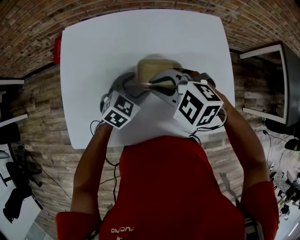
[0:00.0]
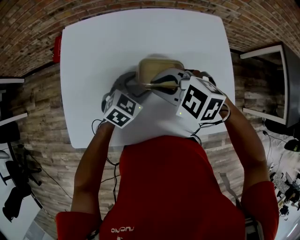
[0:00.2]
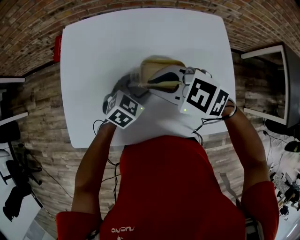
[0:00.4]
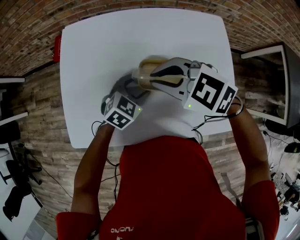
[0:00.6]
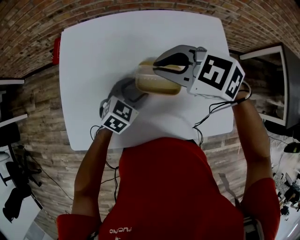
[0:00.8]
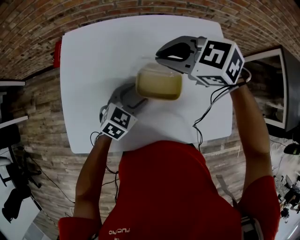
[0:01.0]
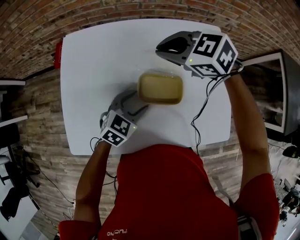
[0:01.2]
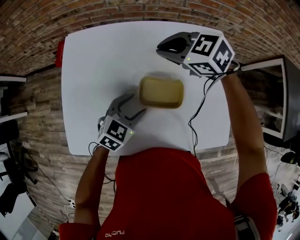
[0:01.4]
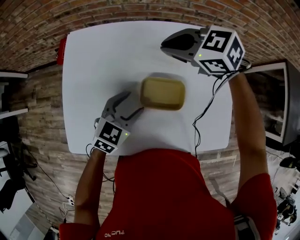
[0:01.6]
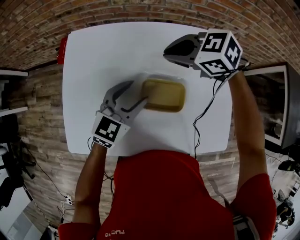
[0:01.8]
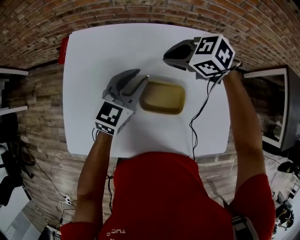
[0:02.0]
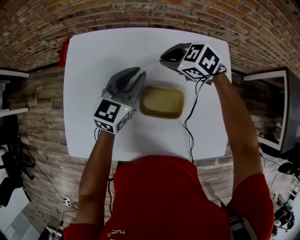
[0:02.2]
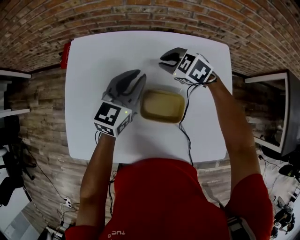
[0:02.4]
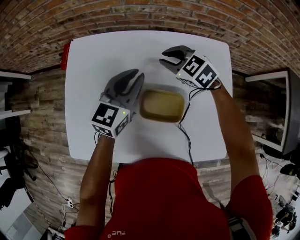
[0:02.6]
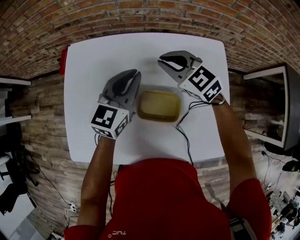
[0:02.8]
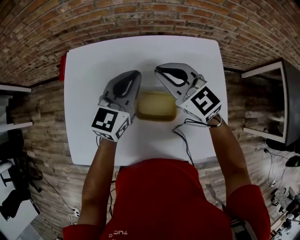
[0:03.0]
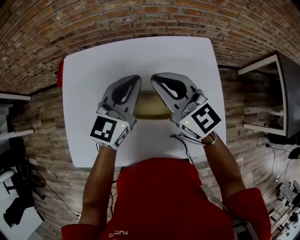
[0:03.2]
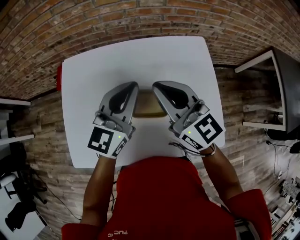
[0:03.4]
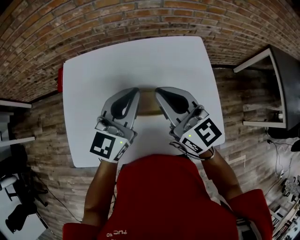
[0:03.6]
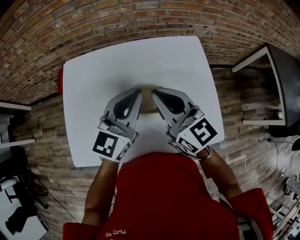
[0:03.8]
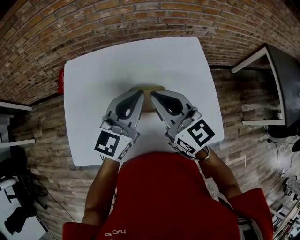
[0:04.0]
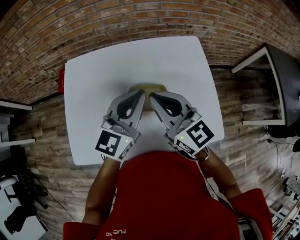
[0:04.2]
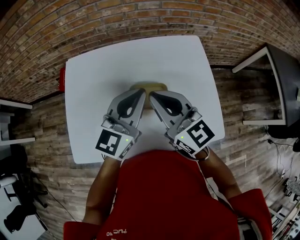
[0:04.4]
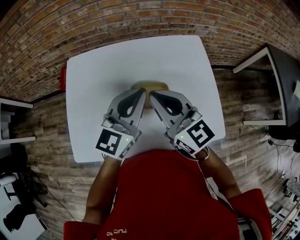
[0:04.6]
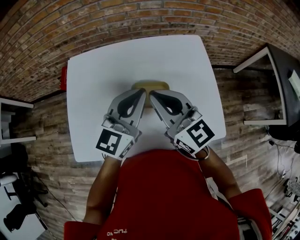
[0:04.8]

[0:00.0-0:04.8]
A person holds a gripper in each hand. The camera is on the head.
0:00.0 to 0:01.6: The right gripper shifts by about 20 cm, and rotates about 20 degrees.
0:01.6 to 0:03.2: The right gripper goes about 5 cm backward, travels downward and back again, roughly 10 cm each way, and angles its fingers upward, by some 40 degrees; the left gripper shifts some 20 cm upward, to the right and forward, turns by some 30 degrees, and closes up.
0:03.2 to 0:04.8: The grippers both shift backward by approximately 10 cm.

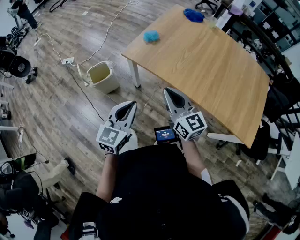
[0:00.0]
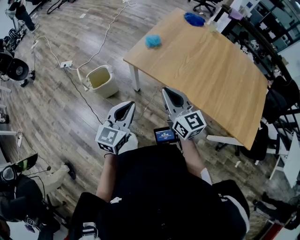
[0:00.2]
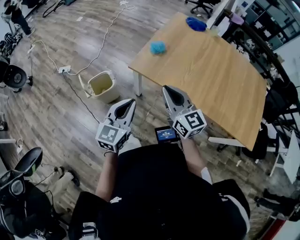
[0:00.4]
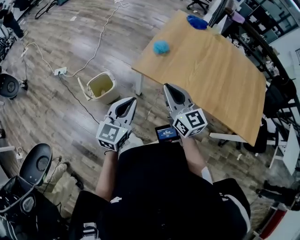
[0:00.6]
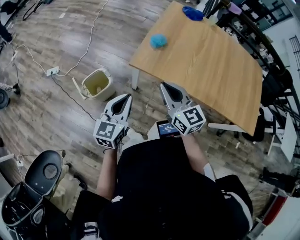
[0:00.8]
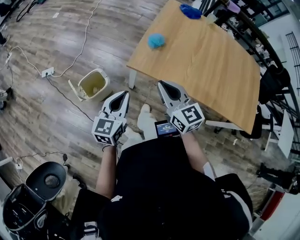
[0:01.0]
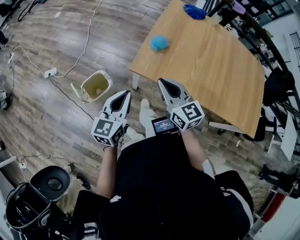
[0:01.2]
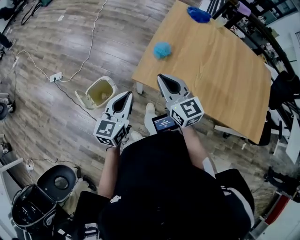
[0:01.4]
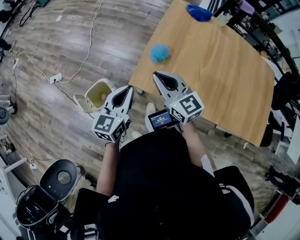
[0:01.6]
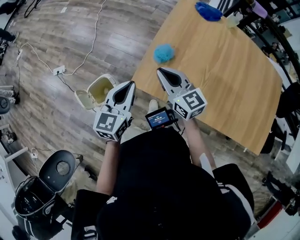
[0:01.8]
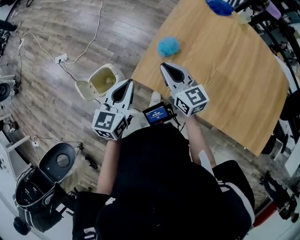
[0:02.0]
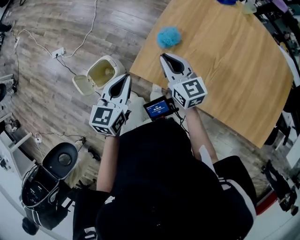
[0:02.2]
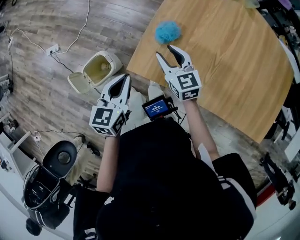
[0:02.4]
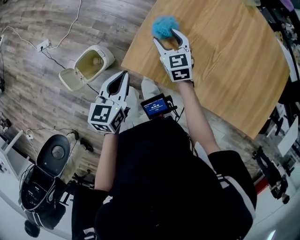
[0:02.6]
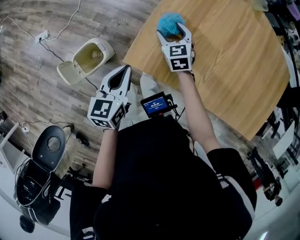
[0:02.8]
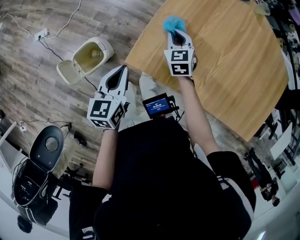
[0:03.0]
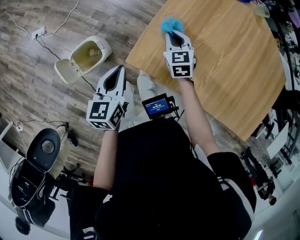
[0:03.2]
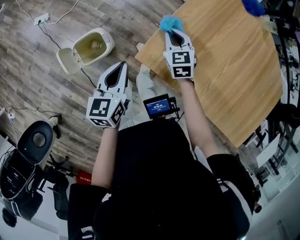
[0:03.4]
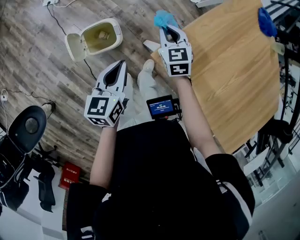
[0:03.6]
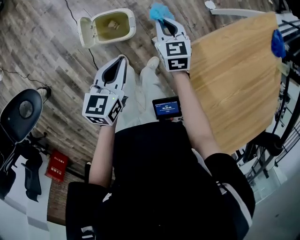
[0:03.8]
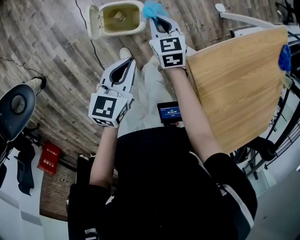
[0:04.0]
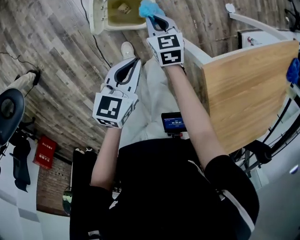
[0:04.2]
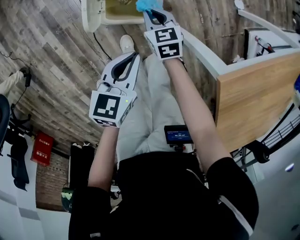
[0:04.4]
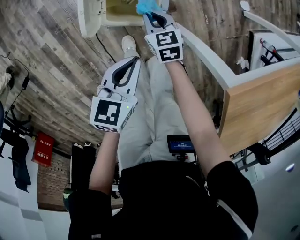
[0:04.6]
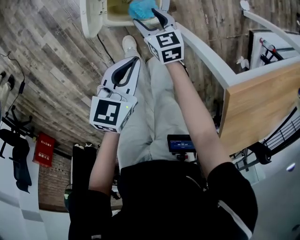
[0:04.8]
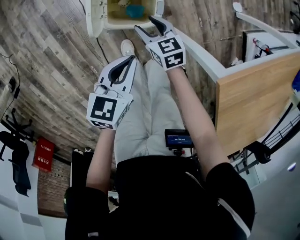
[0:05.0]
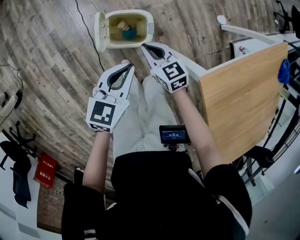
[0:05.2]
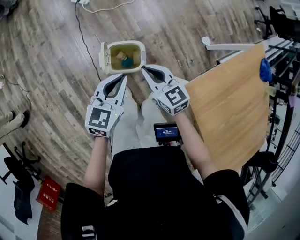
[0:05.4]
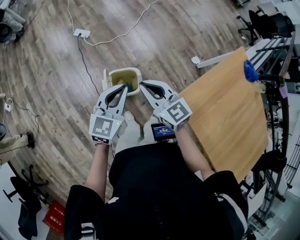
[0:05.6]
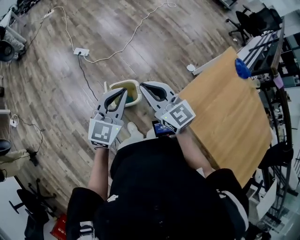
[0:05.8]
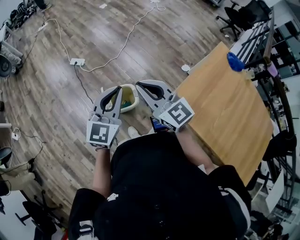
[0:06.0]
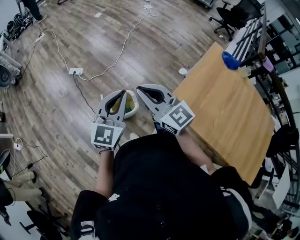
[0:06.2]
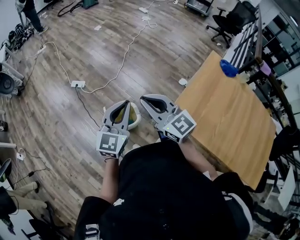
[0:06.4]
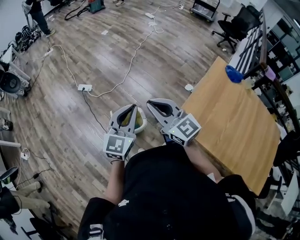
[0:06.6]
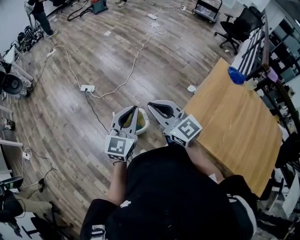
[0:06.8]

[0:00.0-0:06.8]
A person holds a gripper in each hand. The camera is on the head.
0:00.0 to 0:01.4: Both grippers travel together forward and to the left, some 30 cm.
0:01.4 to 0:02.8: The right gripper moves downward and forward, roughly 35 cm, angles its fingers downward, by about 30 degrees, and opens up. Meanwhile the left gripper is displaced downward and forward by approximately 15 cm, and turns by approximately 20 degrees.
0:02.8 to 0:04.0: The right gripper ends up some 35 cm from where it was, swivels approximately 30 degrees, and closes up. Meanwhile the left gripper changes place by some 20 cm, and turns by approximately 30 degrees.
0:04.0 to 0:05.4: The left gripper travels to the left and forward by about 10 cm, and moves about 20 cm downward and comes back. The right gripper shifts roughly 10 cm to the left and backward, travels downward and back again, approximately 25 cm each way, turns by approximately 20 degrees, and opens, then closes again.
0:05.4 to 0:06.8: The two grippers go about 25 cm upward. The right gripper swivels some 30 degrees. The left gripper changes its angle by roughly 30 degrees.

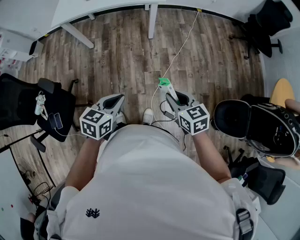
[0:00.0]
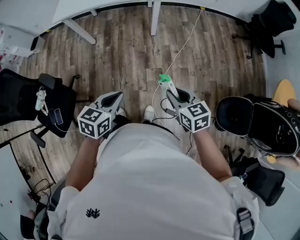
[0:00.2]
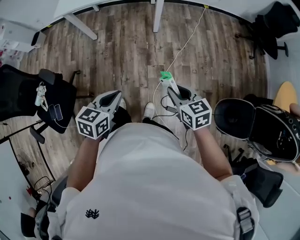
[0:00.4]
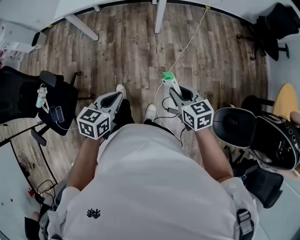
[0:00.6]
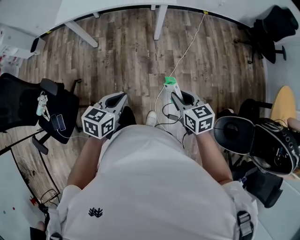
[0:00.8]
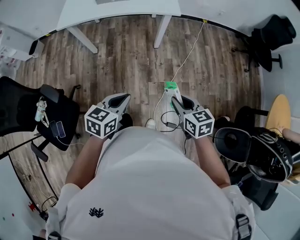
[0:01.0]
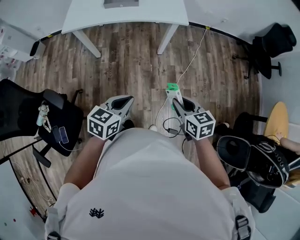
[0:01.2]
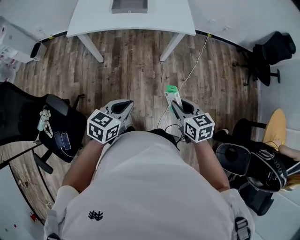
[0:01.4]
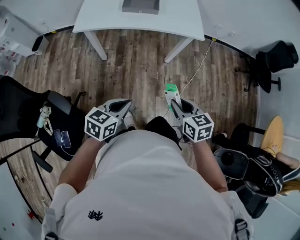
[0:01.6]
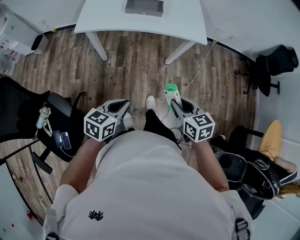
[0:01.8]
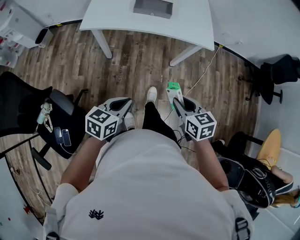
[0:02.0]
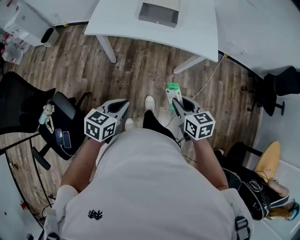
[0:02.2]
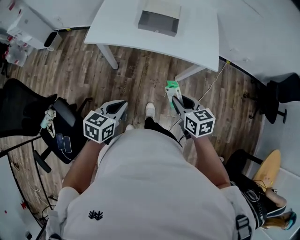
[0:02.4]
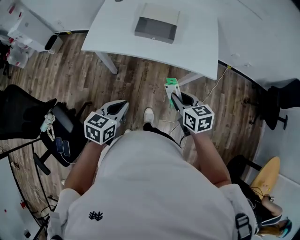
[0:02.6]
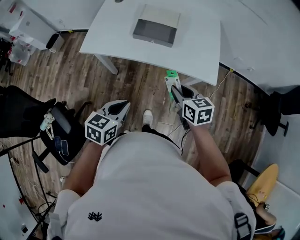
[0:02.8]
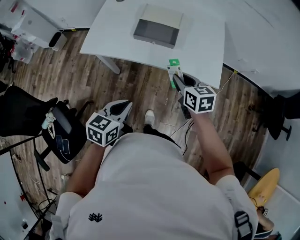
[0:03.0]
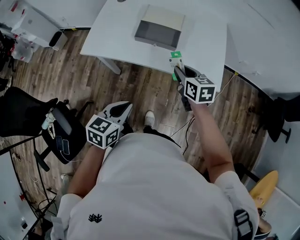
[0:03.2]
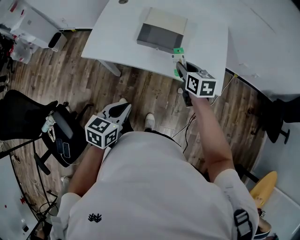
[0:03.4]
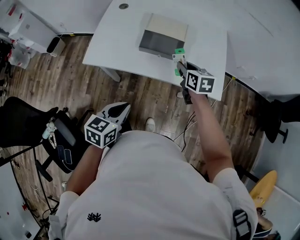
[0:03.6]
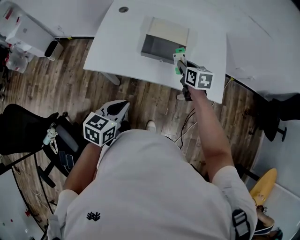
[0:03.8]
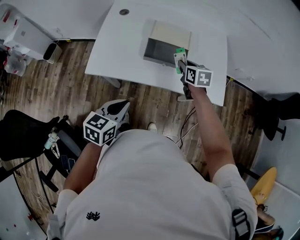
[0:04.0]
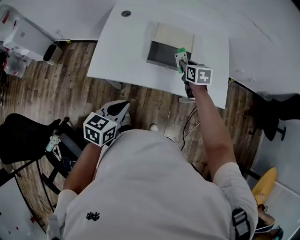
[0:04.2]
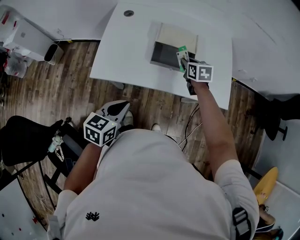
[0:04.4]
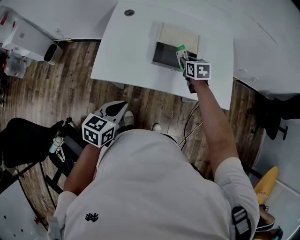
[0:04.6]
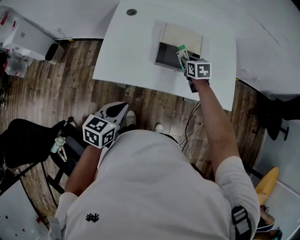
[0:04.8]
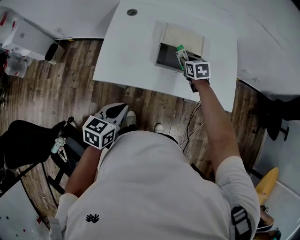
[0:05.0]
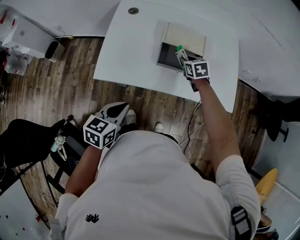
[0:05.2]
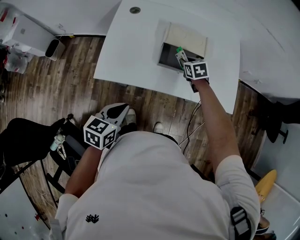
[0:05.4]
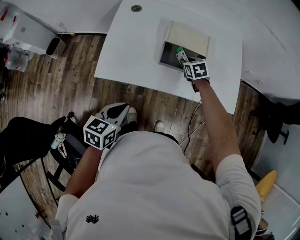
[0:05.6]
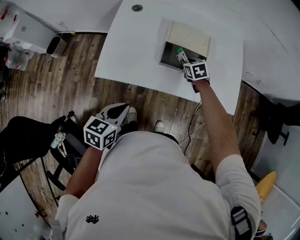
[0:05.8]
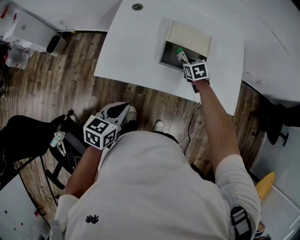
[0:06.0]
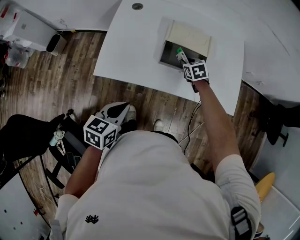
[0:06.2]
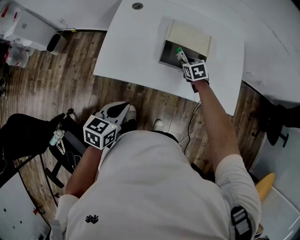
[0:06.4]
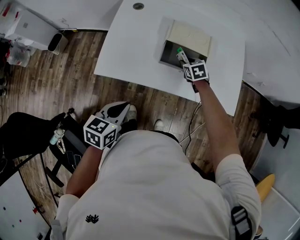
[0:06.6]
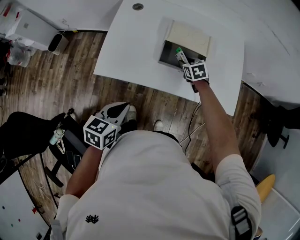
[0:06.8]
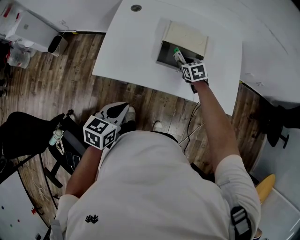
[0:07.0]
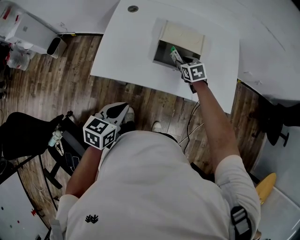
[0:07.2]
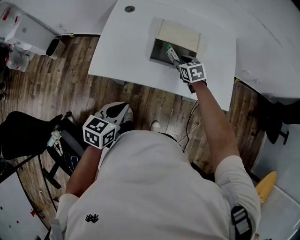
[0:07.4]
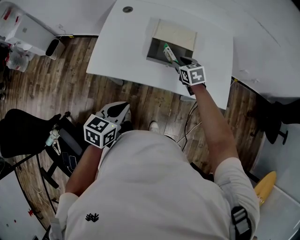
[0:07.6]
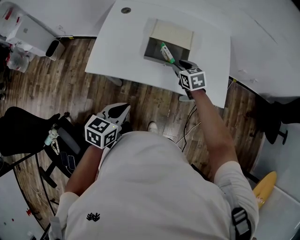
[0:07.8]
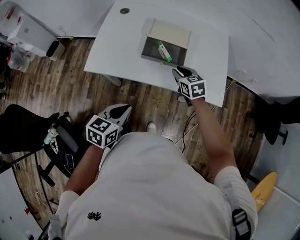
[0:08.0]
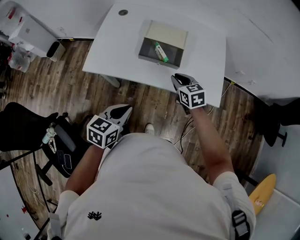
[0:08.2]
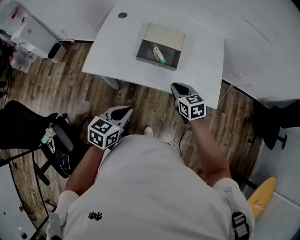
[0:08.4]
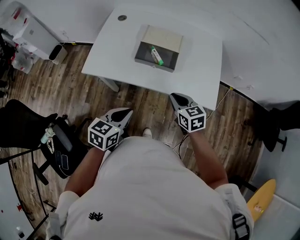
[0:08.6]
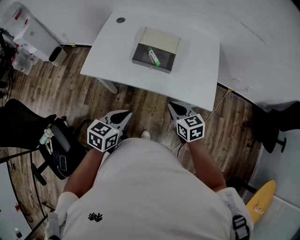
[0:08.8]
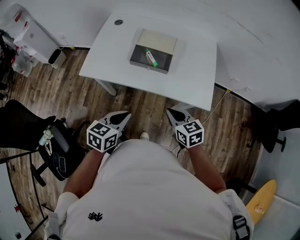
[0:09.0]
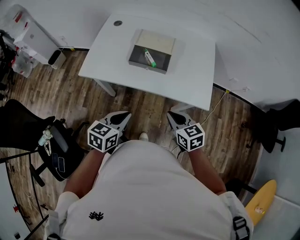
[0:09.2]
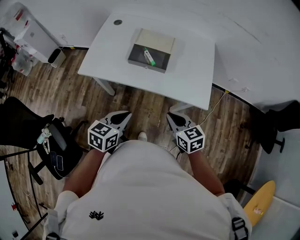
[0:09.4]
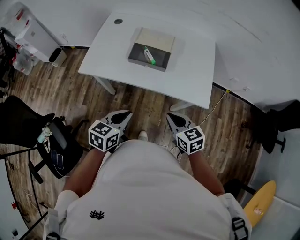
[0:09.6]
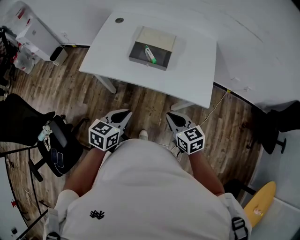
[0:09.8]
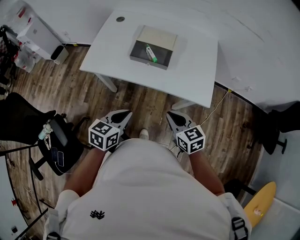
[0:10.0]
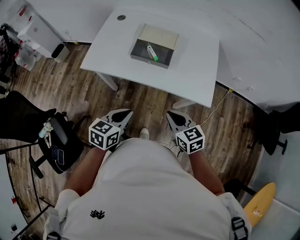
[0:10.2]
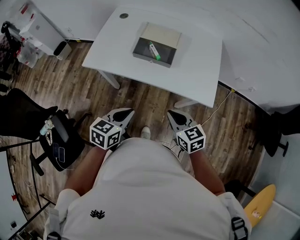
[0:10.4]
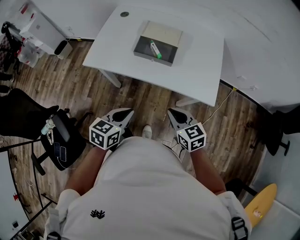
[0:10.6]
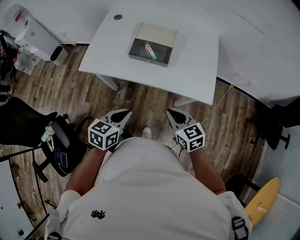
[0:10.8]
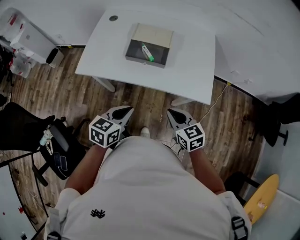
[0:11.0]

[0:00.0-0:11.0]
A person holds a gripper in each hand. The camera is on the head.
0:00.0 to 0:01.6: The left gripper is displaced to the left and forward by approximately 25 cm, while the right gripper moves forward and to the left, about 25 cm.
0:01.6 to 0:03.2: The right gripper travels forward by some 40 cm. Meanwhile the left gripper goes roughly 25 cm forward.
0:03.2 to 0:04.8: The right gripper goes approximately 20 cm forward and to the left. The left gripper shifts approximately 20 cm to the left and forward.
0:04.8 to 0:06.2: The right gripper is displaced downward by some 5 cm.
0:06.2 to 0:07.8: The right gripper heads upward and backward, covering about 10 cm, while the left gripper goes some 10 cm to the right.
0:07.8 to 0:09.4: The right gripper travels backward by approximately 25 cm, and closes. The left gripper travels to the right and backward by some 10 cm.
0:09.4 to 0:11.0: There are only small adjustments of the grippers.

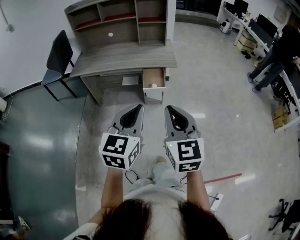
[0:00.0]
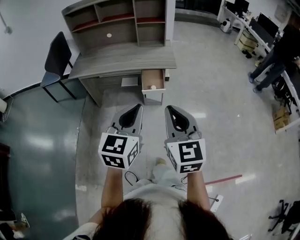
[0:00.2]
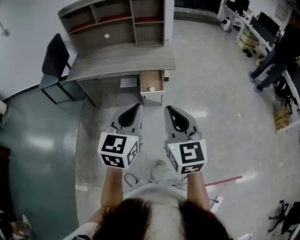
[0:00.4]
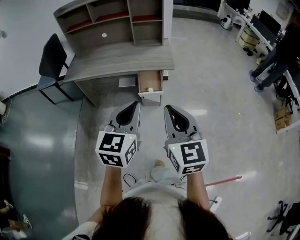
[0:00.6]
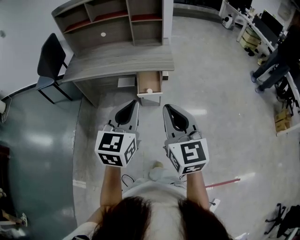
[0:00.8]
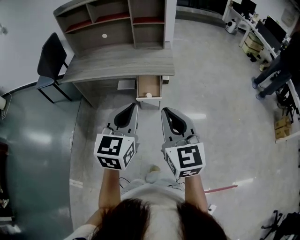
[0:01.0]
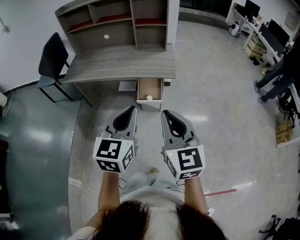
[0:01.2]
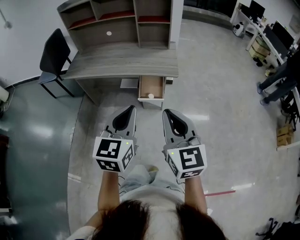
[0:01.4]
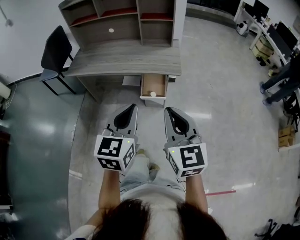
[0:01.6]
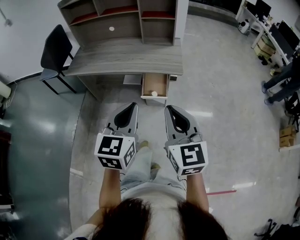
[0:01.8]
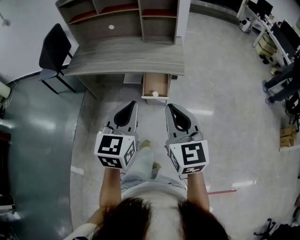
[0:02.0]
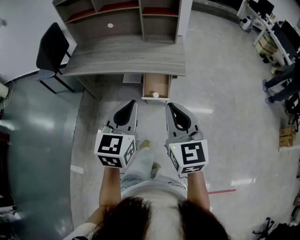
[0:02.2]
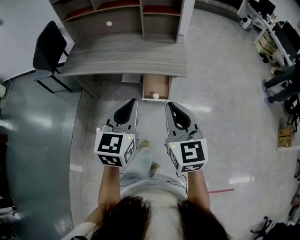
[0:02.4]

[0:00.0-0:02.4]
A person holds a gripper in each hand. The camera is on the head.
0:00.0 to 0:01.2: Both grippers travel together forward, roughly 15 cm.
0:01.2 to 0:02.4: The two grippers go roughly 10 cm forward.
